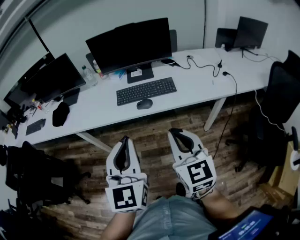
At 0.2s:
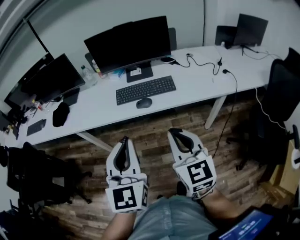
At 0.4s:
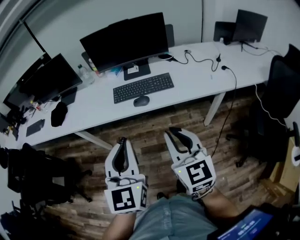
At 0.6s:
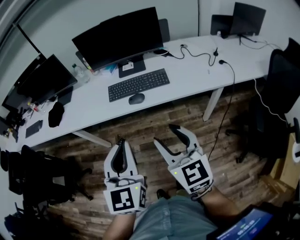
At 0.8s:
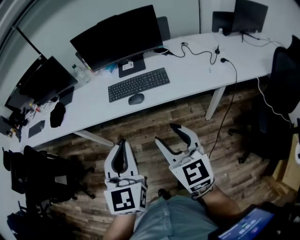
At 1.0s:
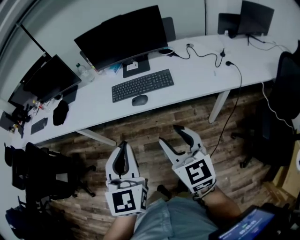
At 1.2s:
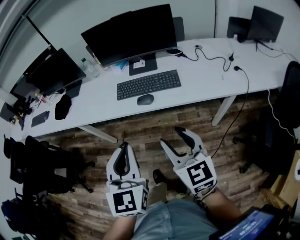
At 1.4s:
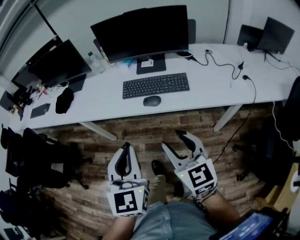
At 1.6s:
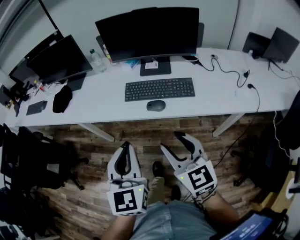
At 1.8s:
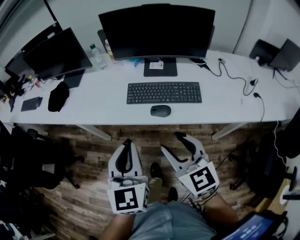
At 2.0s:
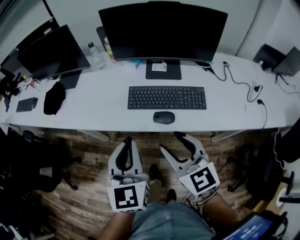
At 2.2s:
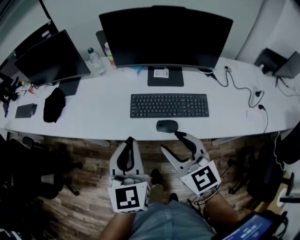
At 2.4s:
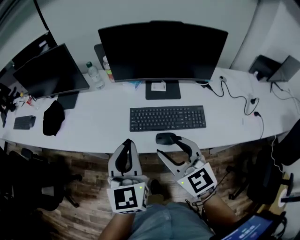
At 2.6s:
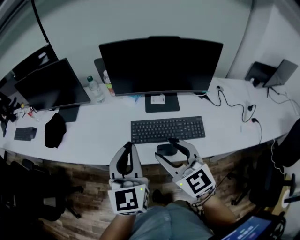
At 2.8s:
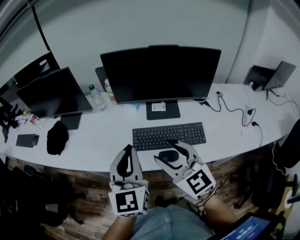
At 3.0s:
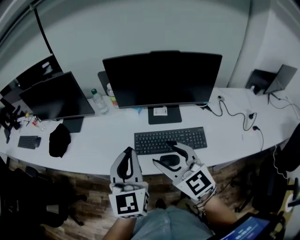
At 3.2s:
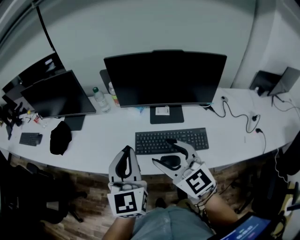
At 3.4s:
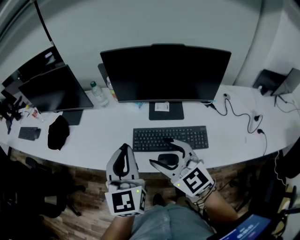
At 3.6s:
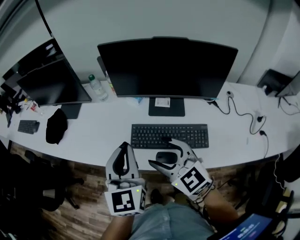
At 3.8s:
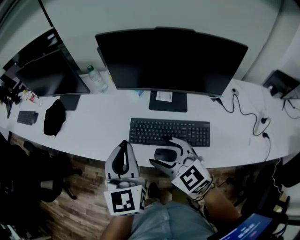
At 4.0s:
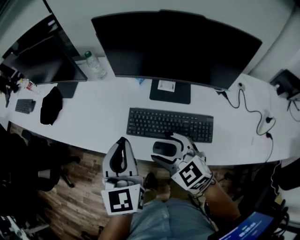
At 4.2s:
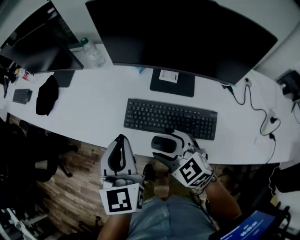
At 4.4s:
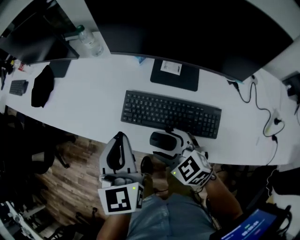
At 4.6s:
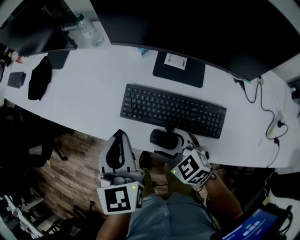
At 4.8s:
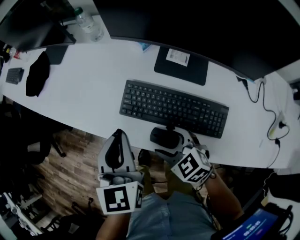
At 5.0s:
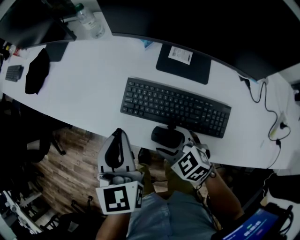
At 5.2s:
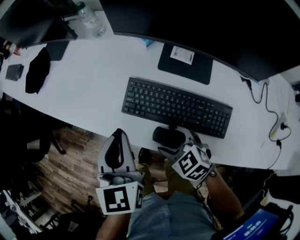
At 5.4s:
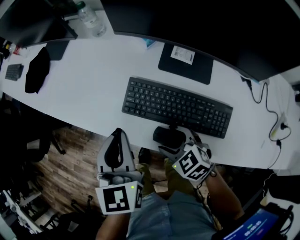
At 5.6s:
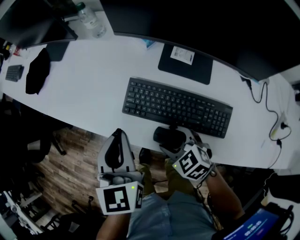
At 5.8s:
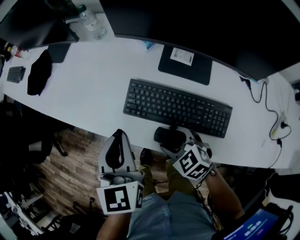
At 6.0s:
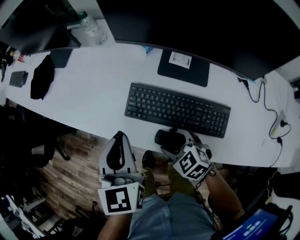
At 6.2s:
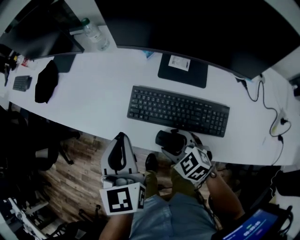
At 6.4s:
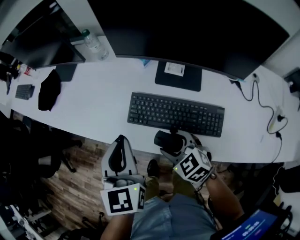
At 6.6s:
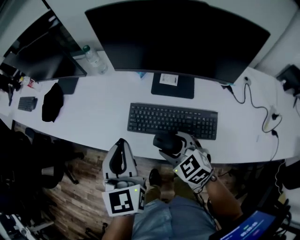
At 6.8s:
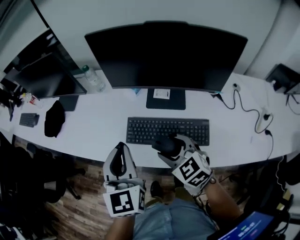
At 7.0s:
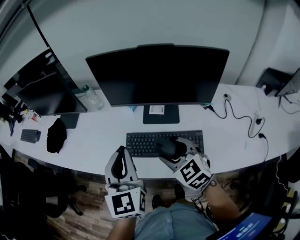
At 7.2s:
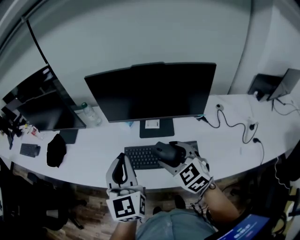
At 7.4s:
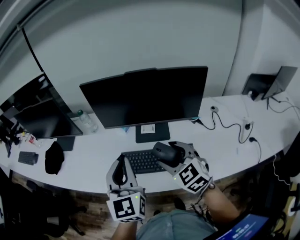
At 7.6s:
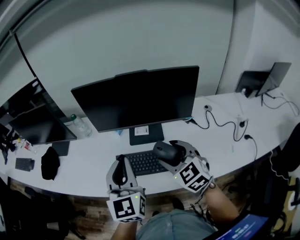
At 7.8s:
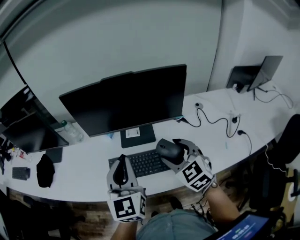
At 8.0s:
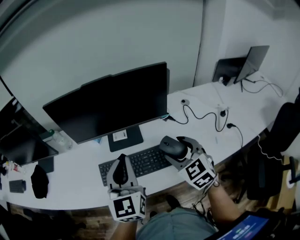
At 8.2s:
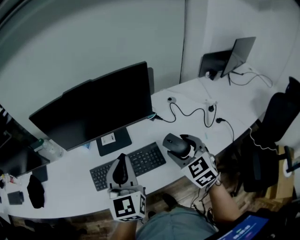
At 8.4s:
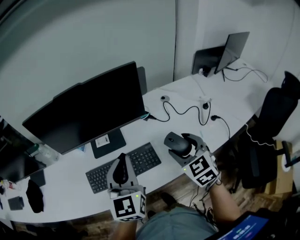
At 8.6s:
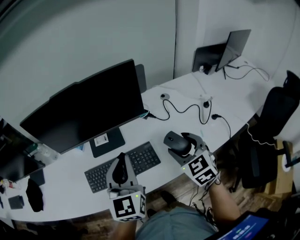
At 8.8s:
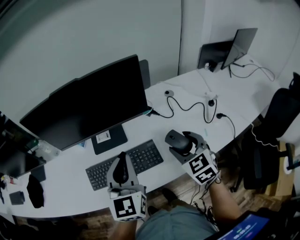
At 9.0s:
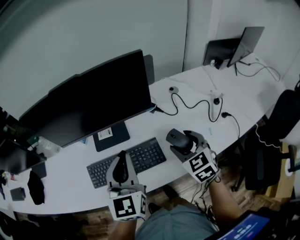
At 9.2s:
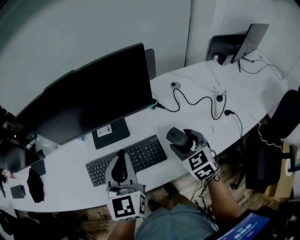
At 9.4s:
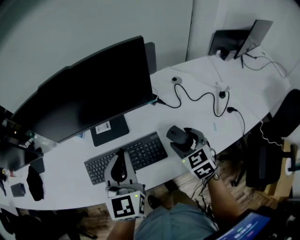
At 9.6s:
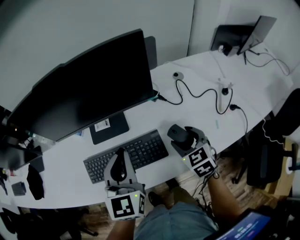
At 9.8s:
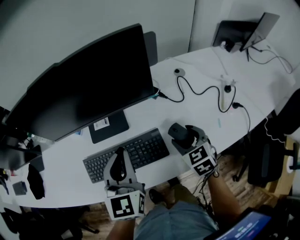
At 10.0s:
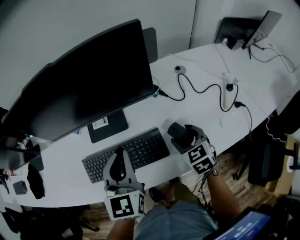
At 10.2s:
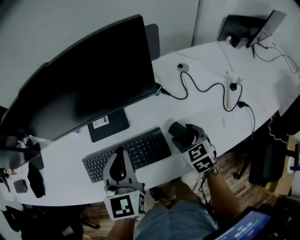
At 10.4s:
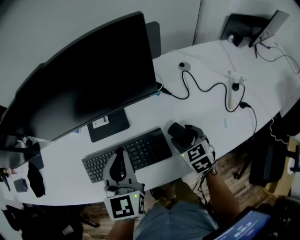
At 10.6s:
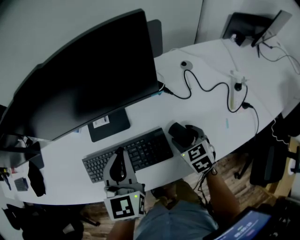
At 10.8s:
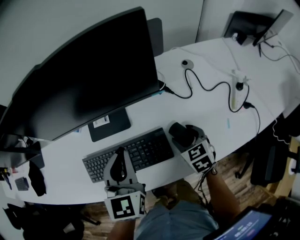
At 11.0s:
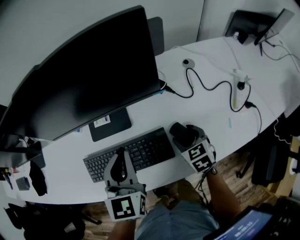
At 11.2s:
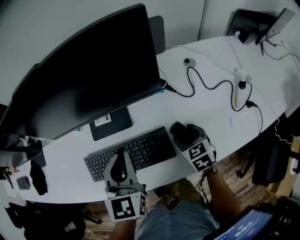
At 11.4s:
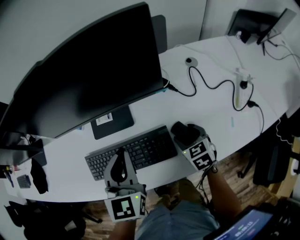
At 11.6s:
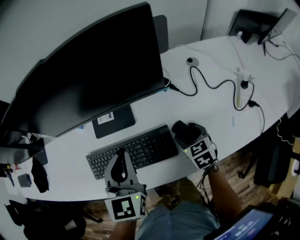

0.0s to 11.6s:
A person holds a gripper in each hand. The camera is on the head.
0.0s to 1.4s: The left gripper moves downward, some 5 cm. The right gripper heads forward and downward, covering some 10 cm, and opens.
1.4s to 2.8s: The grippers both shift forward by approximately 25 cm.
2.8s to 4.4s: The left gripper is displaced downward by roughly 10 cm, and swivels about 20 degrees, while the right gripper heads downward, covering some 20 cm, and turns by about 40 degrees.
4.4s to 5.8s: The right gripper moves downward, roughly 10 cm.
5.8s to 7.2s: Both grippers travel together upward, approximately 20 cm. The right gripper changes its angle by some 30 degrees, while the left gripper turns by roughly 30 degrees.
7.2s to 8.8s: The right gripper moves approximately 25 cm, and rotates about 30 degrees. The left gripper ends up roughly 20 cm from where it was, and changes its angle by roughly 20 degrees.
8.8s to 10.2s: The left gripper is displaced downward and forward by approximately 10 cm, while the right gripper goes about 15 cm downward.
10.2s to 11.6s: The right gripper is displaced downward by some 5 cm.

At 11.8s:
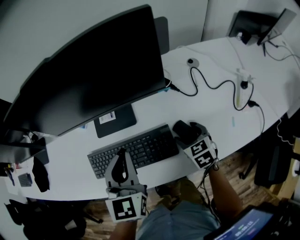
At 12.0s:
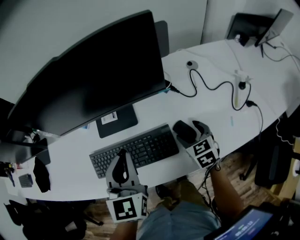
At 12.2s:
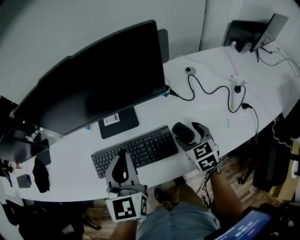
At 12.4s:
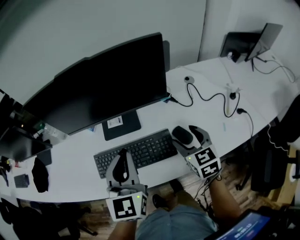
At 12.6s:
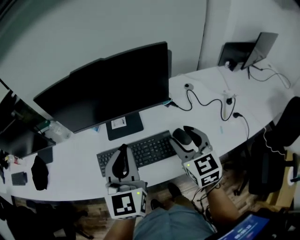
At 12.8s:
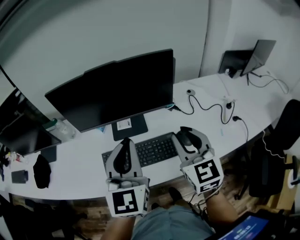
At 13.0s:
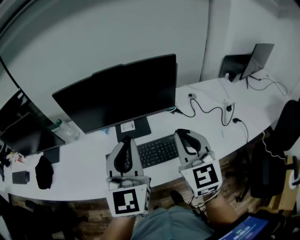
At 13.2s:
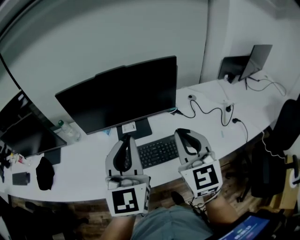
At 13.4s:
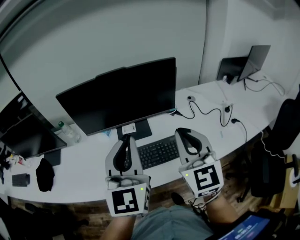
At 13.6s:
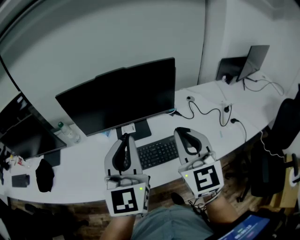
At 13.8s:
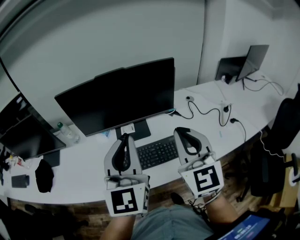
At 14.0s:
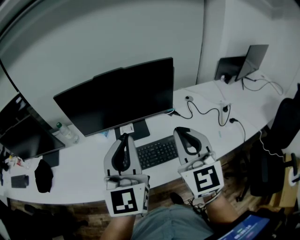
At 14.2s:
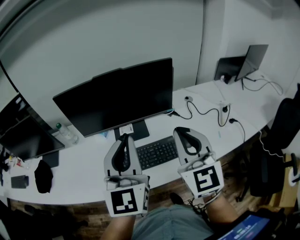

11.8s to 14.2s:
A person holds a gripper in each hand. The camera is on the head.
11.8s to 13.0s: The left gripper goes roughly 20 cm upward and backward, and turns by some 20 degrees. Meanwhile the right gripper moves upward, some 35 cm, angles its fingers upward, by about 40 degrees, and closes.
13.0s to 14.2s: The grippers move only a little.

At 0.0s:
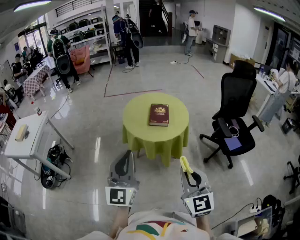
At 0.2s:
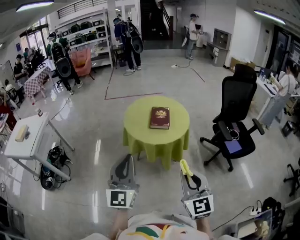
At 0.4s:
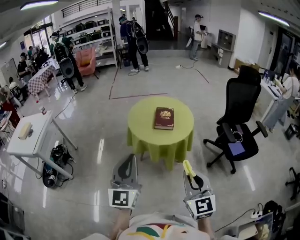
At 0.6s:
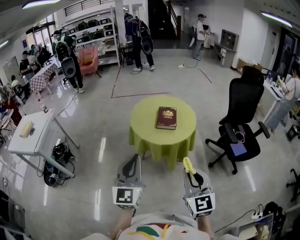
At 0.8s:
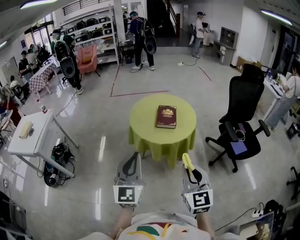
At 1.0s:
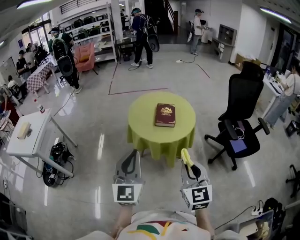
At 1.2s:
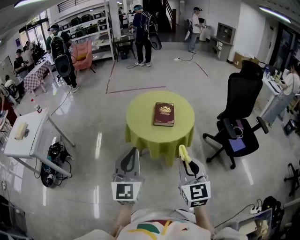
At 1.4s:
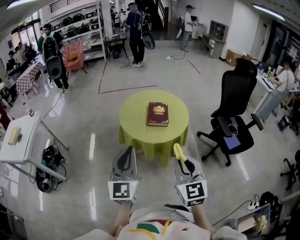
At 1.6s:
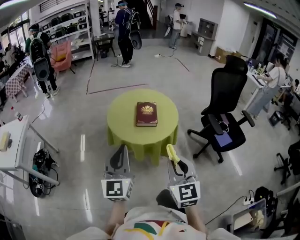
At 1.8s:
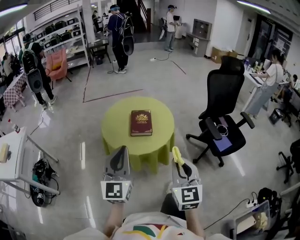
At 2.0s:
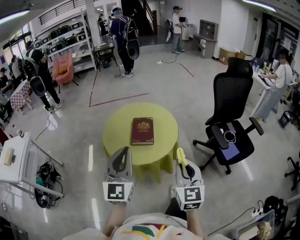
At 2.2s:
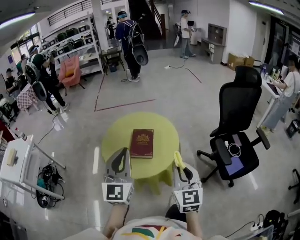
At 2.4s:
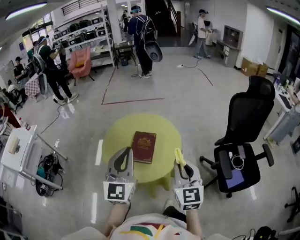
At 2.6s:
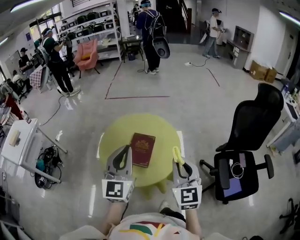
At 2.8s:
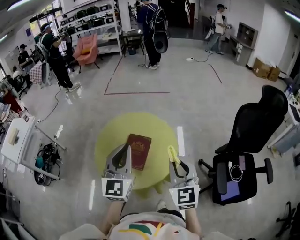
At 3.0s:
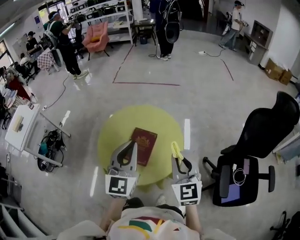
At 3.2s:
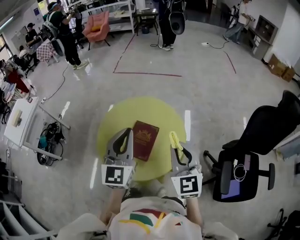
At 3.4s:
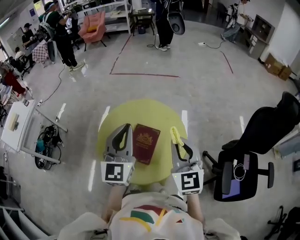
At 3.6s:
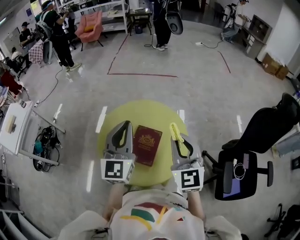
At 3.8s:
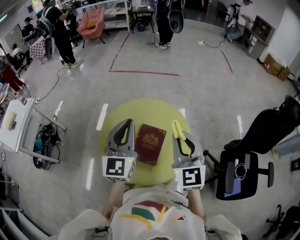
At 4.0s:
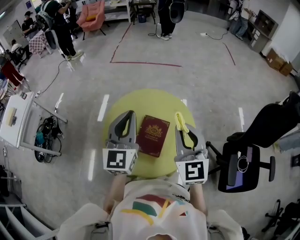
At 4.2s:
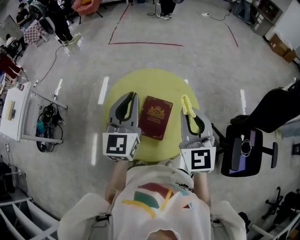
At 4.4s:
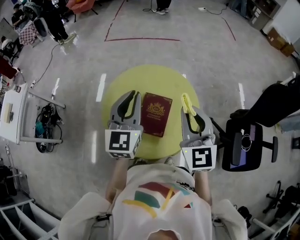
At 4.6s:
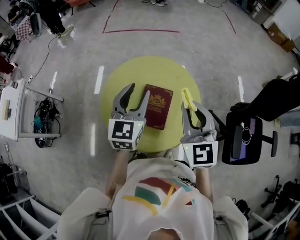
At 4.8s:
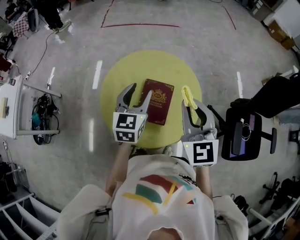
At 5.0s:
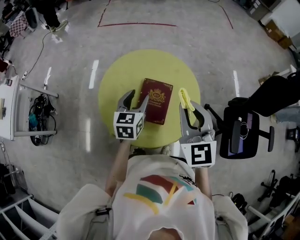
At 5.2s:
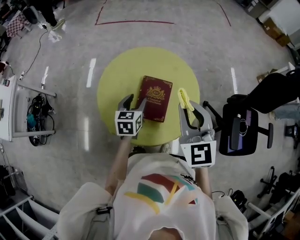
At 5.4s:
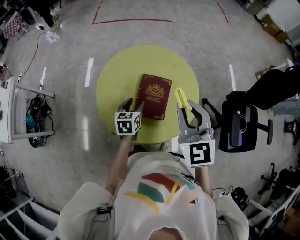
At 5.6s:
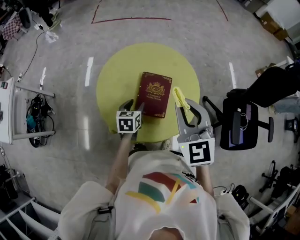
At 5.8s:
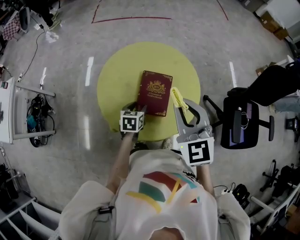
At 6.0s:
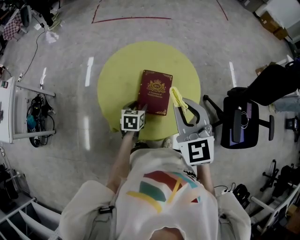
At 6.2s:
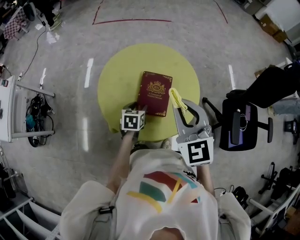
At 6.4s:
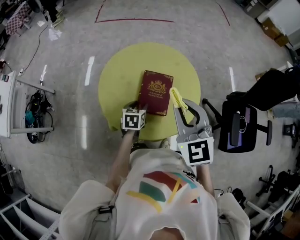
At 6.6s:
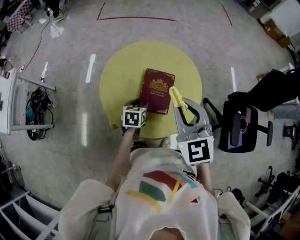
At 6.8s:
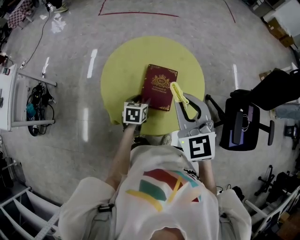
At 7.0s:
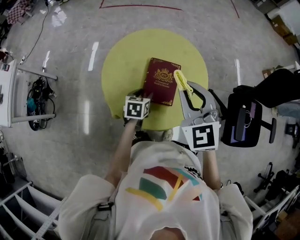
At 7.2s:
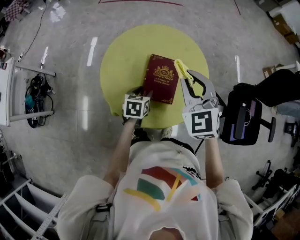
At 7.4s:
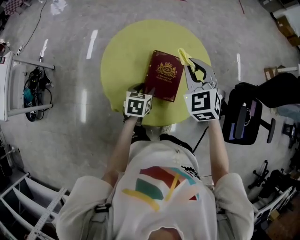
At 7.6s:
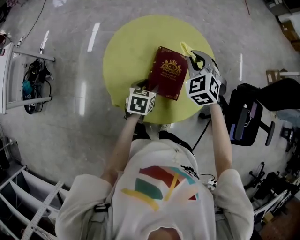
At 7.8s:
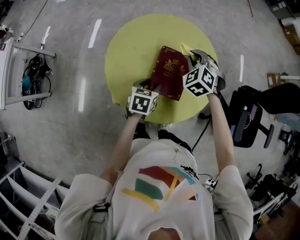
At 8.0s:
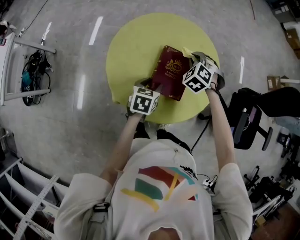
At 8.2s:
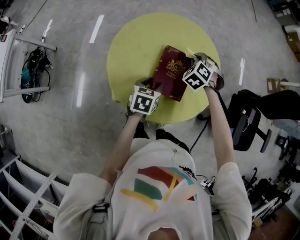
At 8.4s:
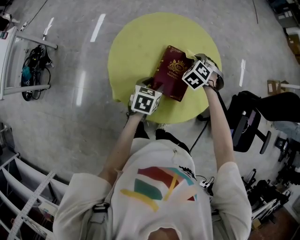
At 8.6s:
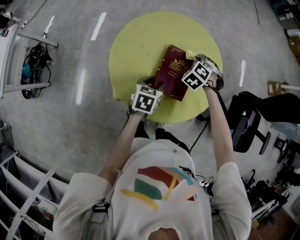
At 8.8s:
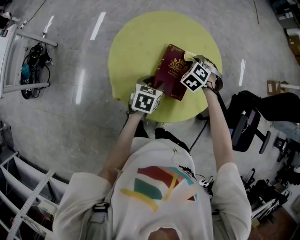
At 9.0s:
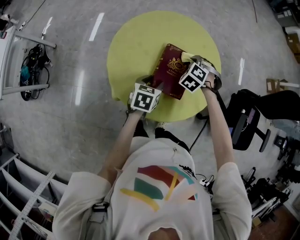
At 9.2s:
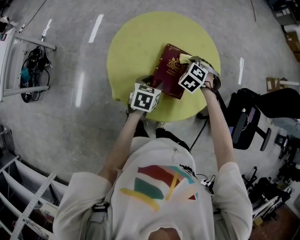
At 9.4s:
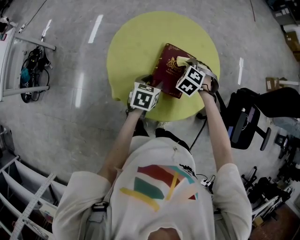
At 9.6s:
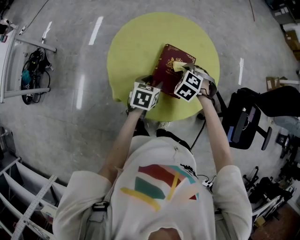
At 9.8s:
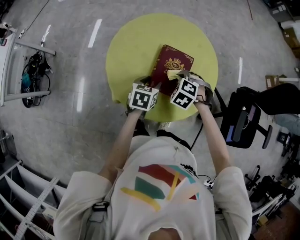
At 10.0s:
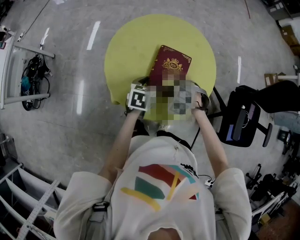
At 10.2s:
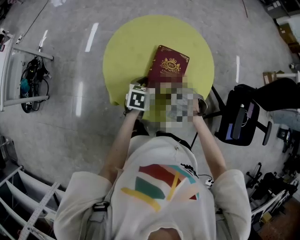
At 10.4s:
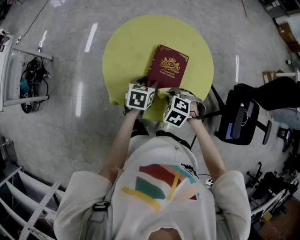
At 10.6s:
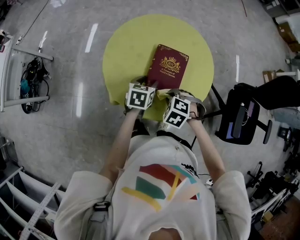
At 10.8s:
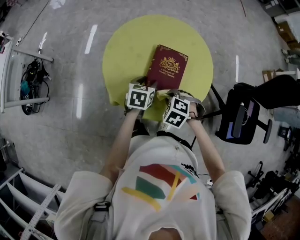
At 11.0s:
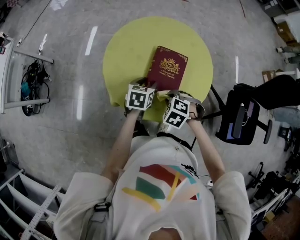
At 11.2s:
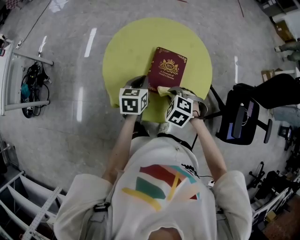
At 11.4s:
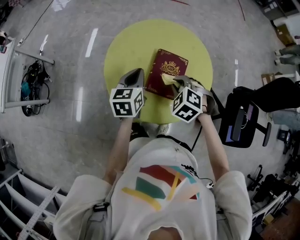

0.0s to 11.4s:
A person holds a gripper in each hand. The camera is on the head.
0.0s to 1.4s: Both grippers travel together forward, about 10 cm.
1.4s to 2.8s: Both grippers move forward and to the right, about 40 cm.
2.8s to 4.2s: The two grippers go about 15 cm forward and to the left.
4.2s to 5.6s: The right gripper ends up approximately 5 cm from where it was. Meanwhile the left gripper travels downward by approximately 30 cm, tips its fingers downward by approximately 50 degrees, and opens.
5.6s to 7.2s: The right gripper shifts by some 5 cm.
7.2s to 8.6s: The right gripper shifts approximately 25 cm downward and forward, and angles its fingers downward, by roughly 40 degrees.
8.6s to 10.0s: The right gripper heads backward, covering about 15 cm.
10.0s to 11.4s: The grippers both shift upward by some 10 cm. The left gripper rotates roughly 20 degrees, and closes.
